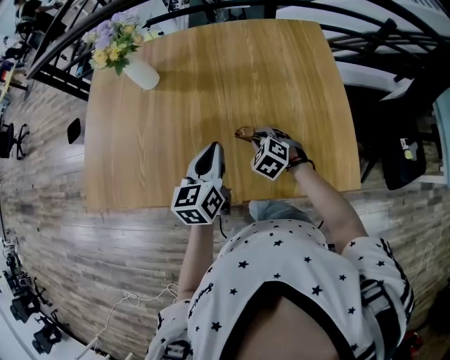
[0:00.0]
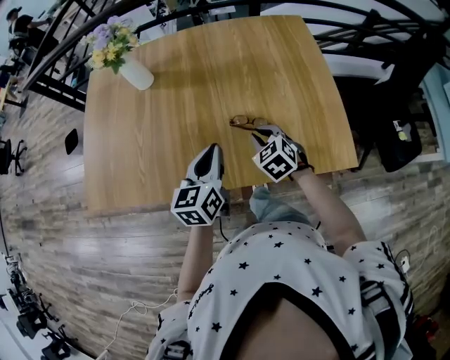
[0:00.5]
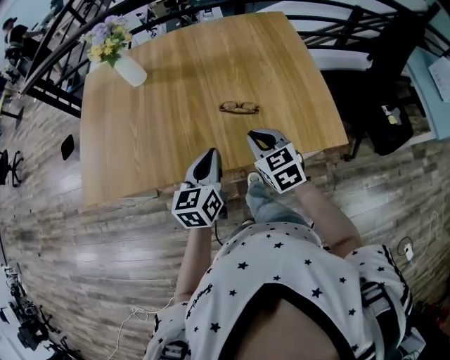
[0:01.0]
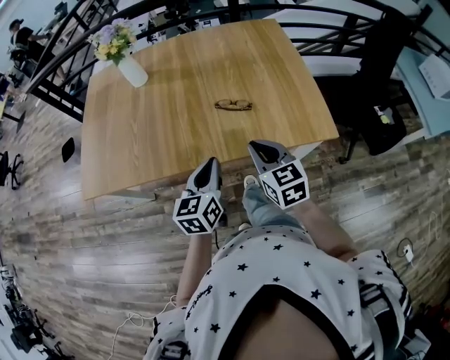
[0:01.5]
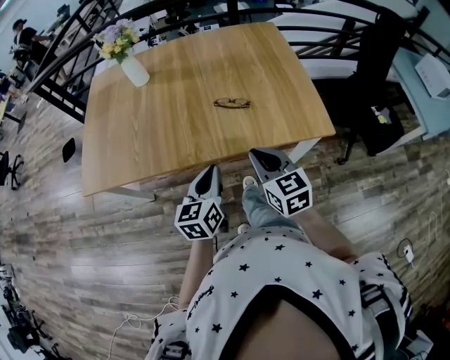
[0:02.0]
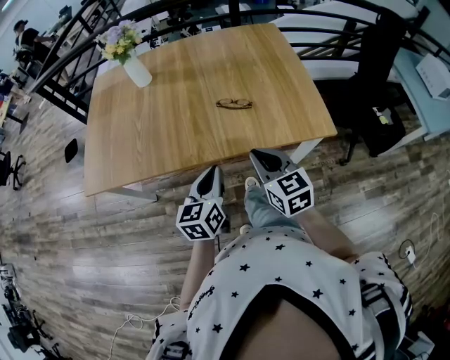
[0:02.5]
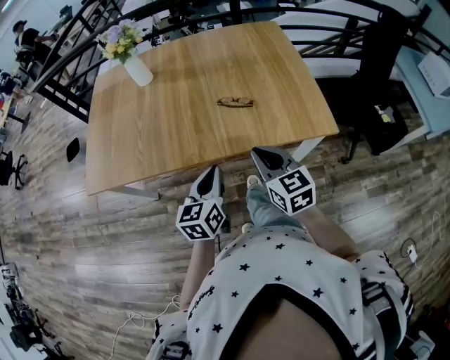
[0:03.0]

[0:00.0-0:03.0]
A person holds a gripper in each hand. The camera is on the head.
0:00.0 to 0:01.5: The left gripper is displaced backward by approximately 20 cm. The right gripper goes about 25 cm backward and upward, and tilts its fingers roughly 30 degrees upward.
0:01.5 to 0:03.0: The grippers stay close to where they were, moving slightly.

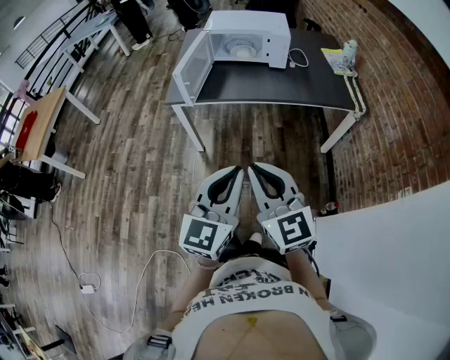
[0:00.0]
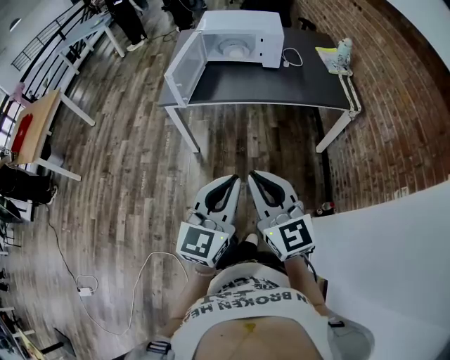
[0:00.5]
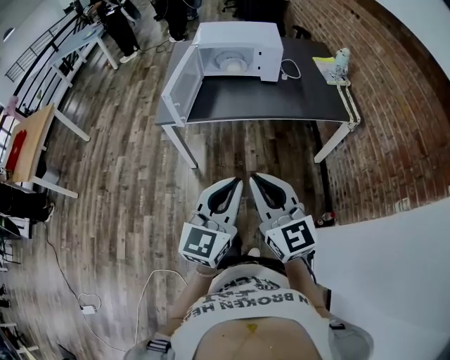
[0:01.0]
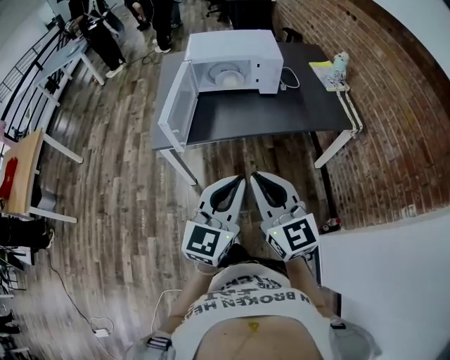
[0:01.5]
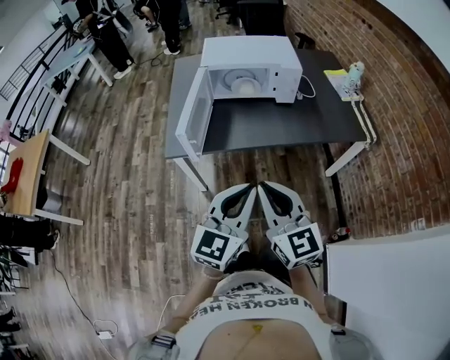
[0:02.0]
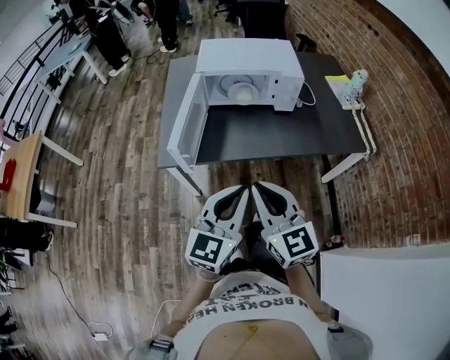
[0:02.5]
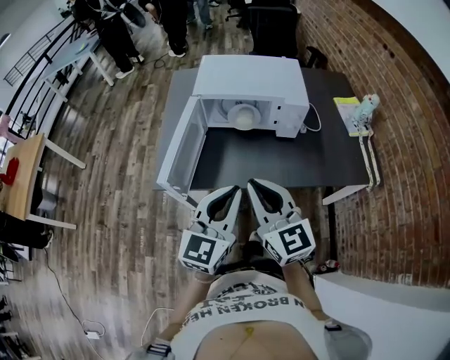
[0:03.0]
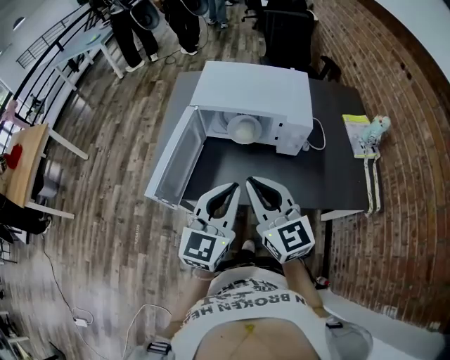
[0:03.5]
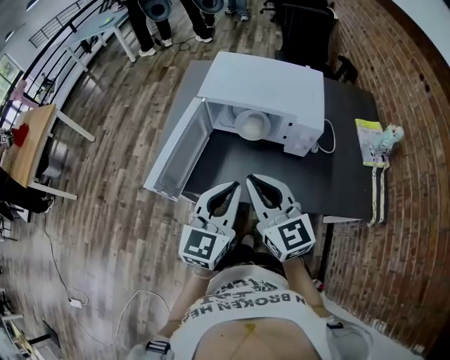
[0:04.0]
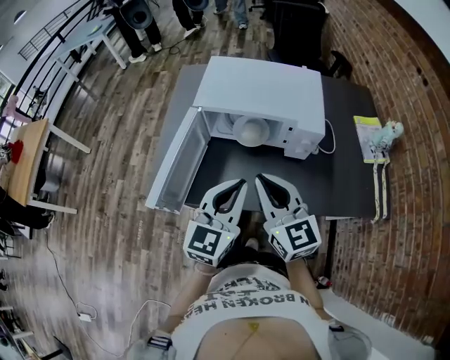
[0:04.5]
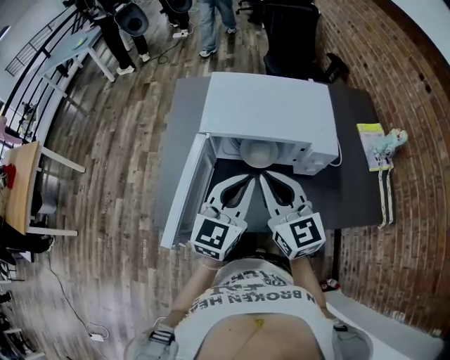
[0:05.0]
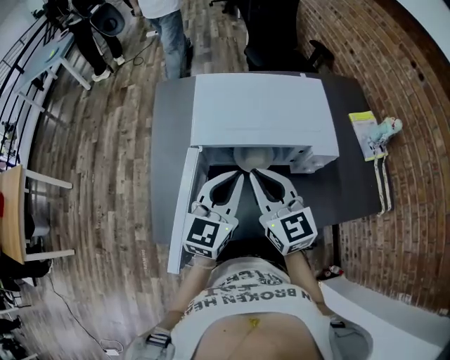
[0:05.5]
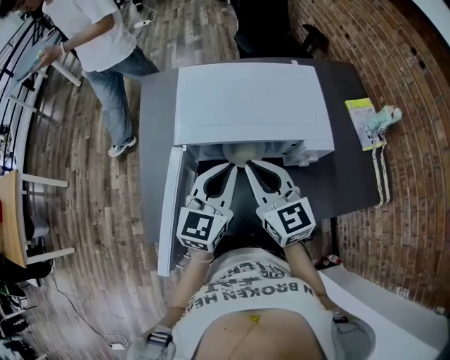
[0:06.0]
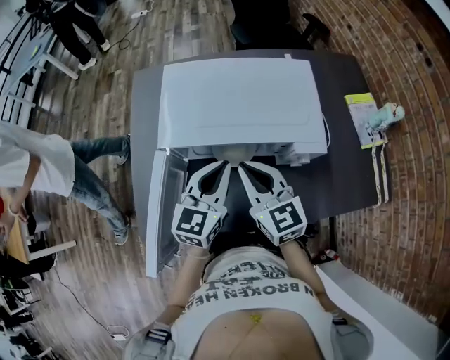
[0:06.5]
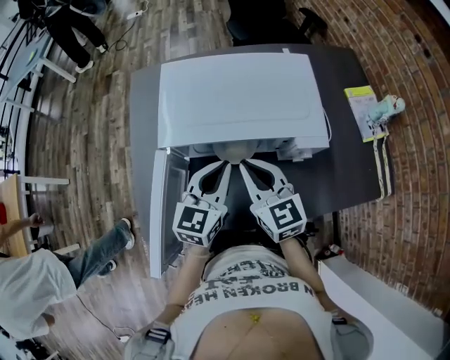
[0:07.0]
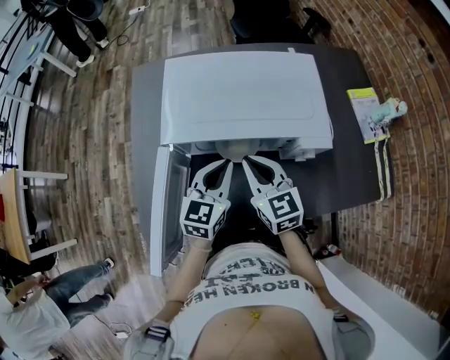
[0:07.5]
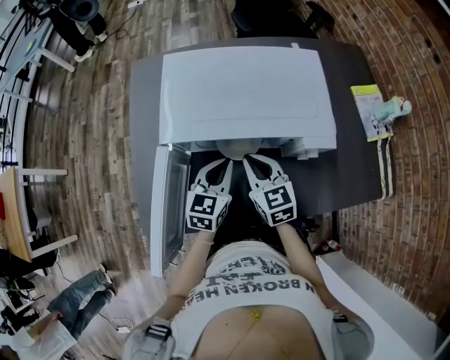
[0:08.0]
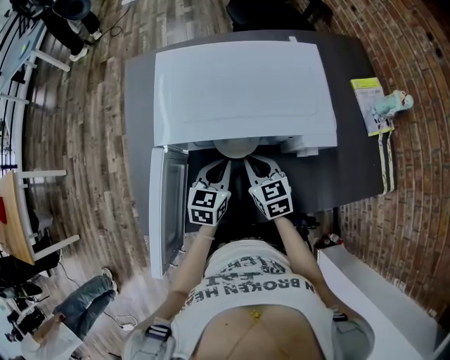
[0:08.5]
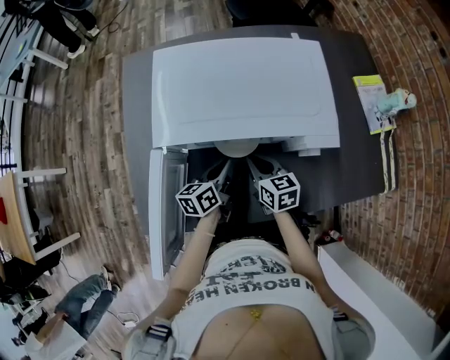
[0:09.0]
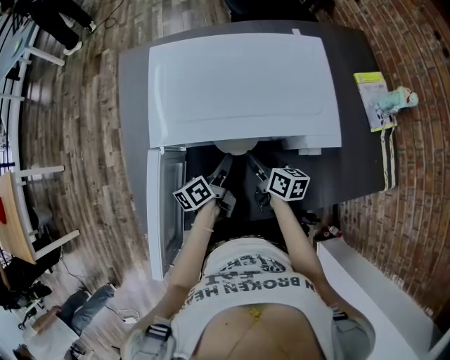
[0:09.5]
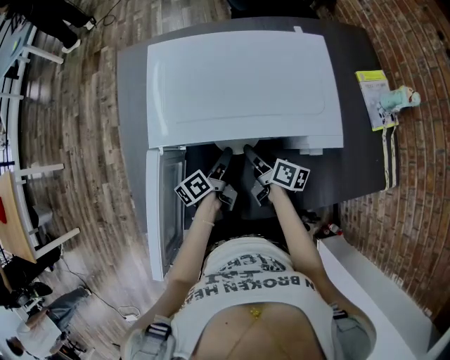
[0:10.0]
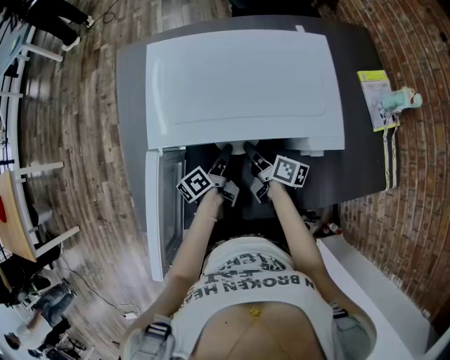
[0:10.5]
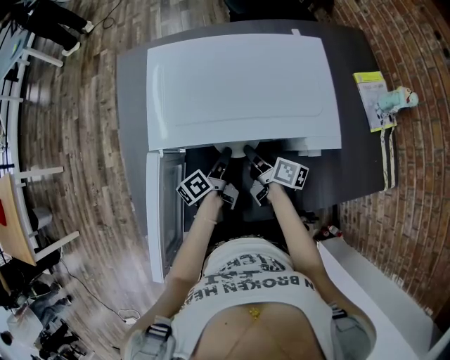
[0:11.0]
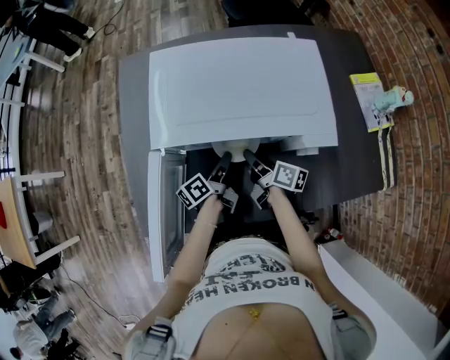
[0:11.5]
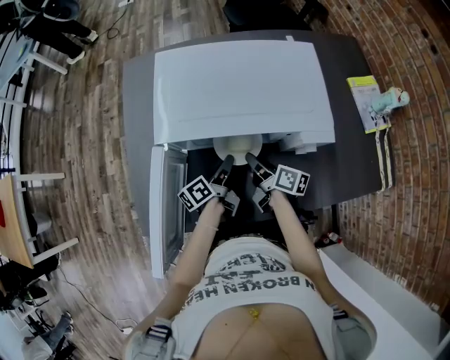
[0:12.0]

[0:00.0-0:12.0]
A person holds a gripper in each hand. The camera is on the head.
0:00.0 to 0:02.0: The two grippers go roughly 25 cm forward.
0:02.0 to 0:04.0: The two grippers go about 30 cm forward.
0:04.0 to 0:06.0: Both grippers travel together forward, about 20 cm.
0:06.0 to 0:08.0: The two grippers go some 15 cm downward.
0:08.0 to 0:10.0: Both grippers travel together downward, some 10 cm. The right gripper rotates around the line of its fingers by approximately 60 degrees, clockwise from behind, and opens up; the left gripper twists about 70 degrees counterclockwise, seen from behind, and opens up.
0:10.0 to 0:12.0: The right gripper closes up; the left gripper closes.

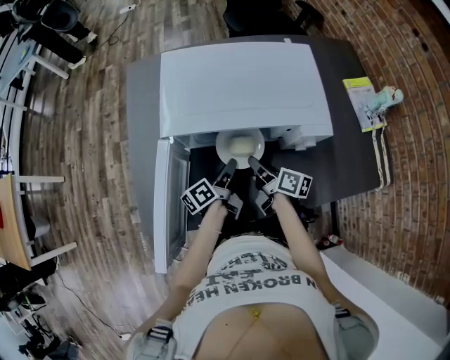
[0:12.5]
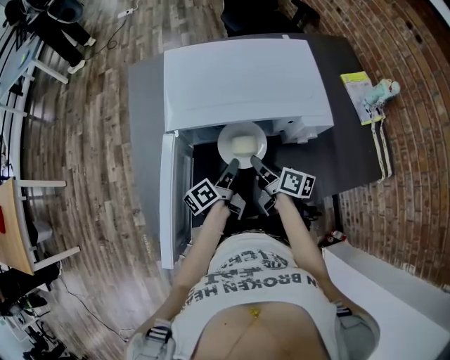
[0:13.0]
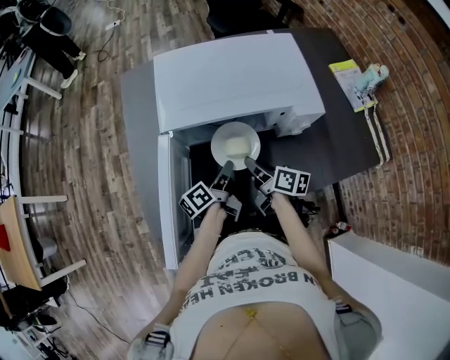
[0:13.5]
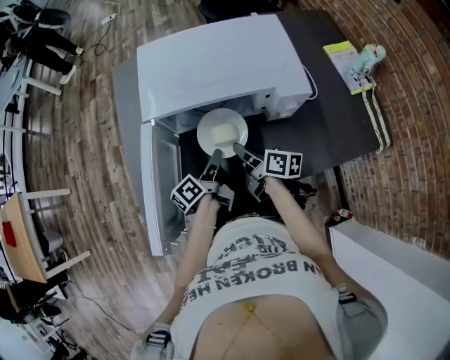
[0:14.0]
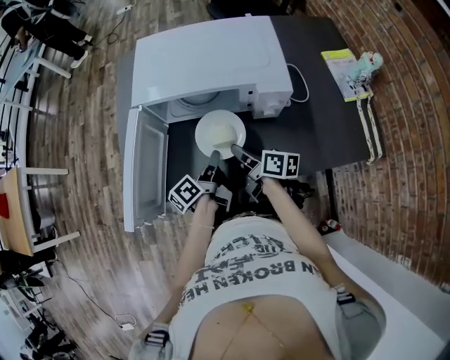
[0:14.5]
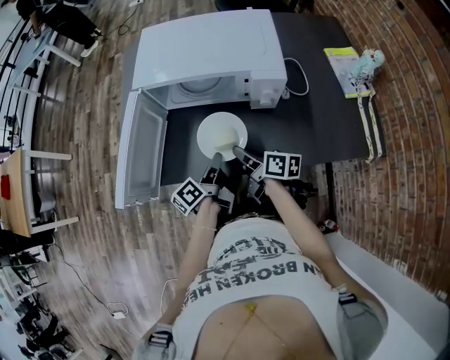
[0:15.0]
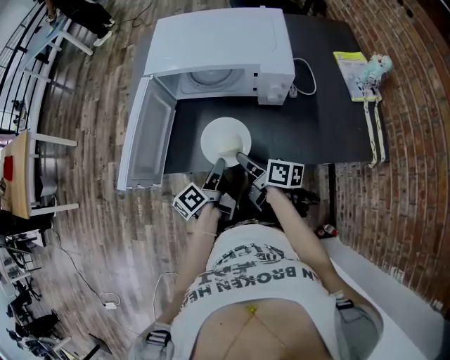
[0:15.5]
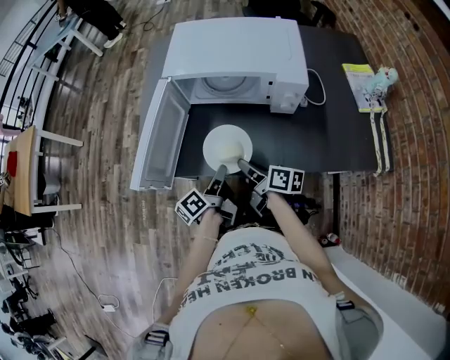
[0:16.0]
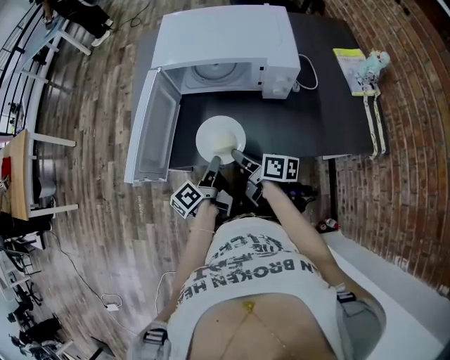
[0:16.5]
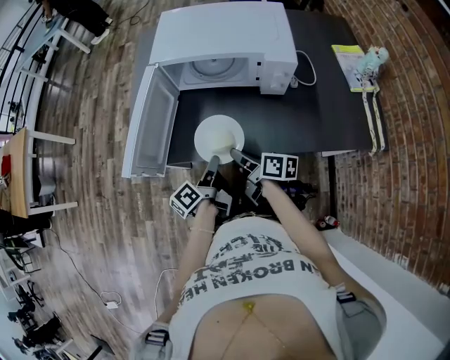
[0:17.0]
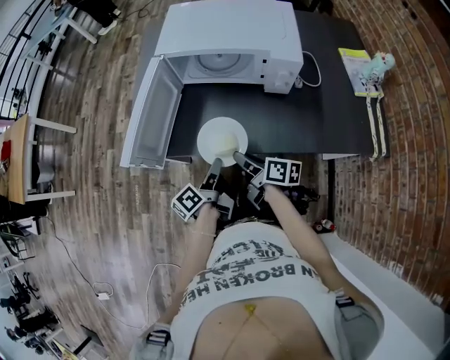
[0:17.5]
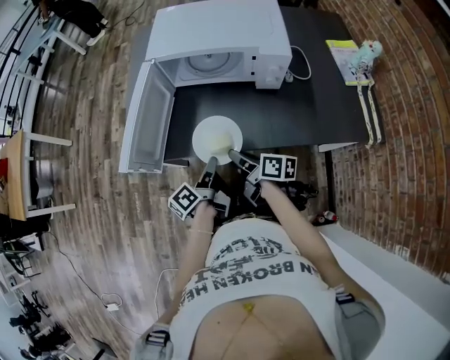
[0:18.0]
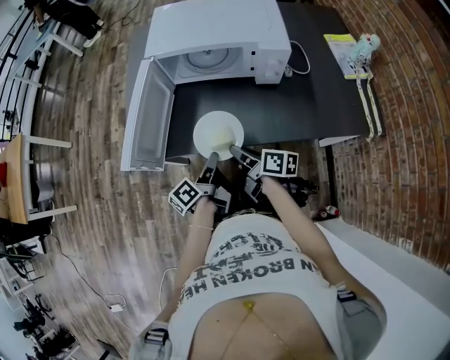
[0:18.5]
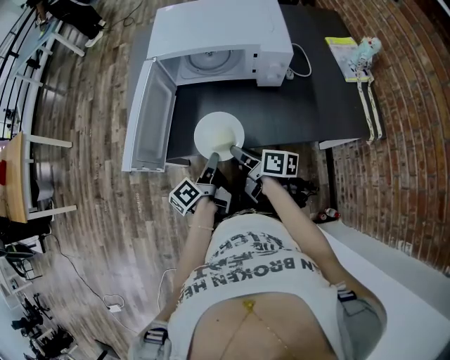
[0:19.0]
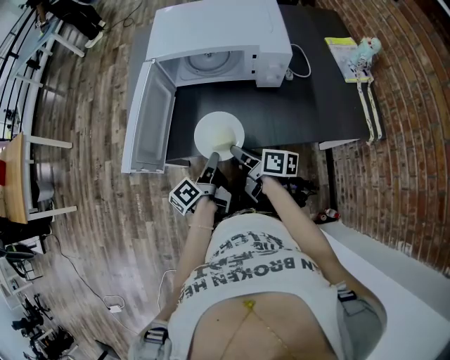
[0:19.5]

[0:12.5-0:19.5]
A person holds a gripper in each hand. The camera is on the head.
0:12.5 to 0:14.5: The two grippers go roughly 10 cm backward.
0:14.5 to 0:16.0: Both grippers move backward and to the left, some 10 cm.
0:16.0 to 0:17.5: The left gripper is displaced backward by some 5 cm.
0:17.5 to 0:19.5: The grippers move only a little.

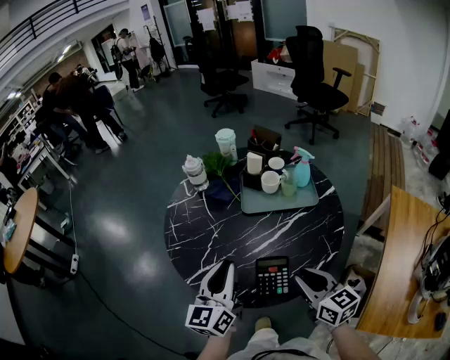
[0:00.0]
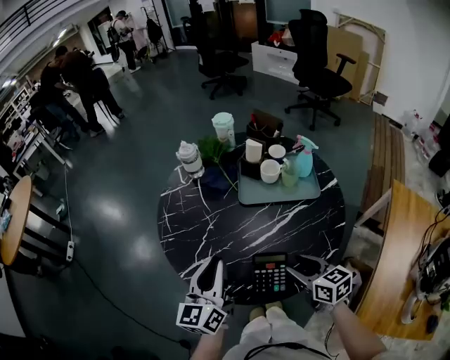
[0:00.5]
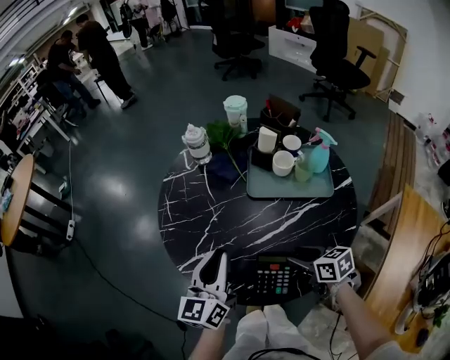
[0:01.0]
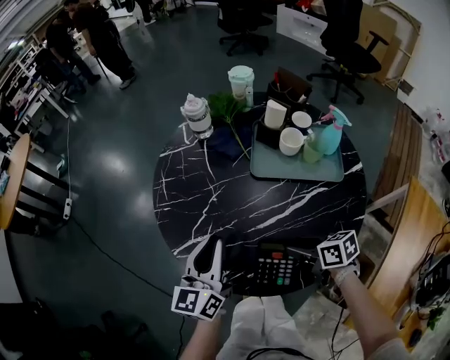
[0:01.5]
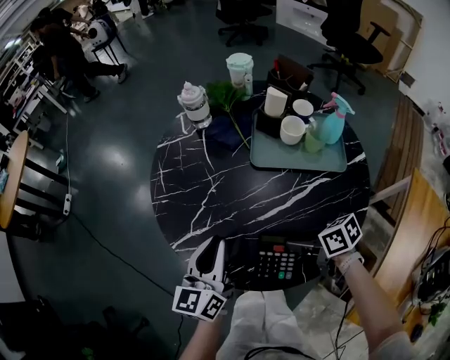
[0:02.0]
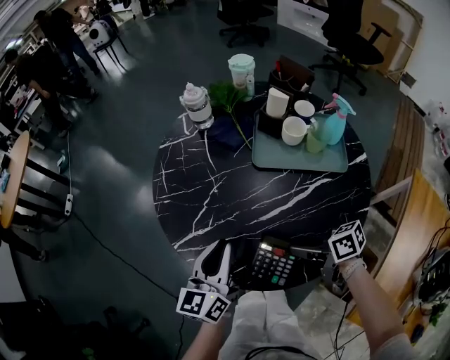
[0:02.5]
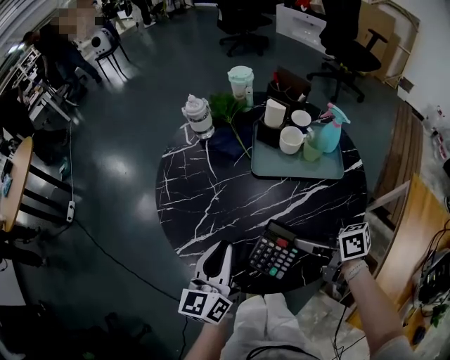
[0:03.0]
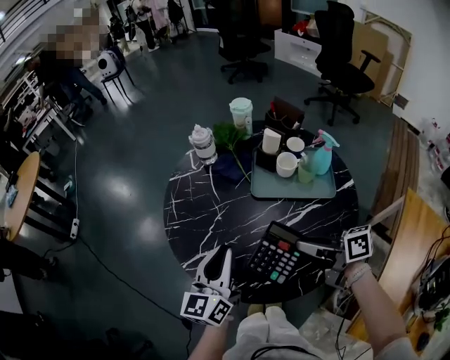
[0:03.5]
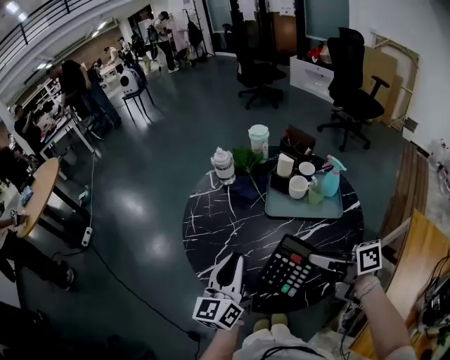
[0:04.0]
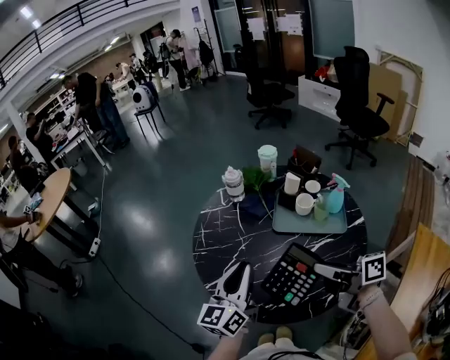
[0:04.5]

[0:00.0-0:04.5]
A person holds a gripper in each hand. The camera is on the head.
0:00.0 to 0:02.0: The left gripper heads downward, covering roughly 10 cm, while the right gripper is displaced downward by some 15 cm, and turns by approximately 50 degrees.
0:02.0 to 0:04.5: The left gripper moves upward, roughly 15 cm, while the right gripper travels upward by approximately 25 cm, and tips its fingers upward by some 30 degrees.
